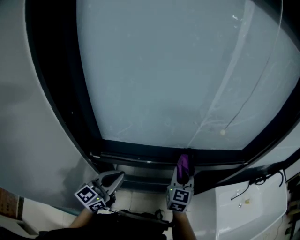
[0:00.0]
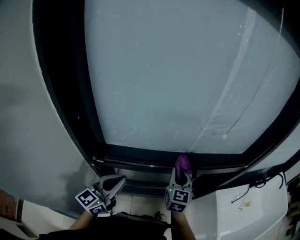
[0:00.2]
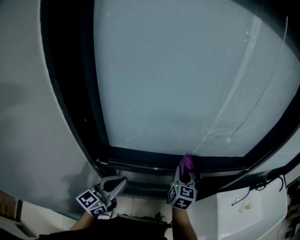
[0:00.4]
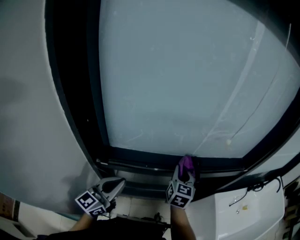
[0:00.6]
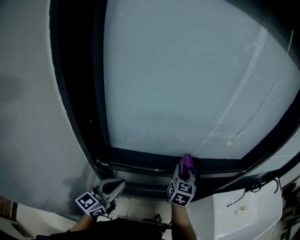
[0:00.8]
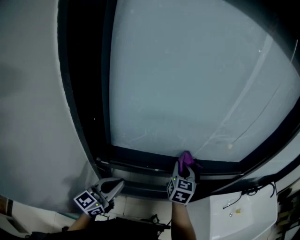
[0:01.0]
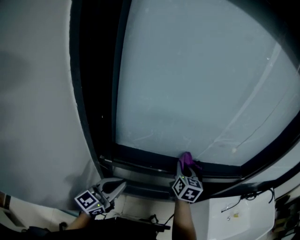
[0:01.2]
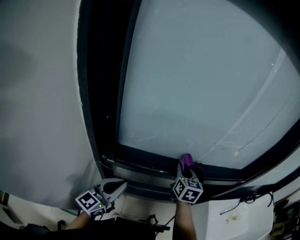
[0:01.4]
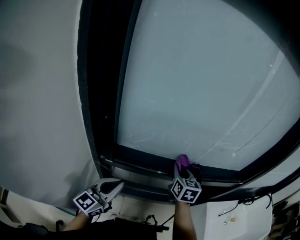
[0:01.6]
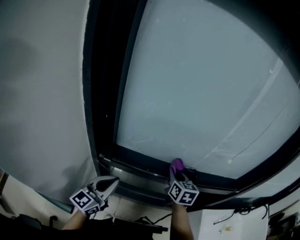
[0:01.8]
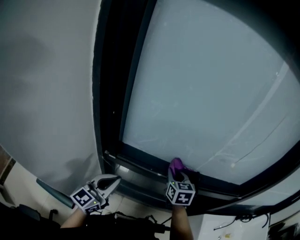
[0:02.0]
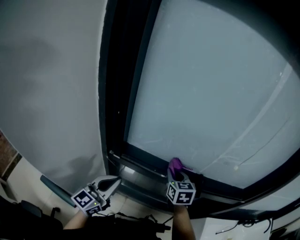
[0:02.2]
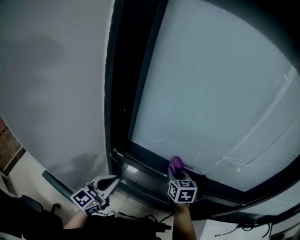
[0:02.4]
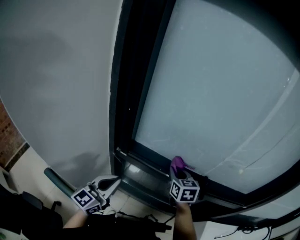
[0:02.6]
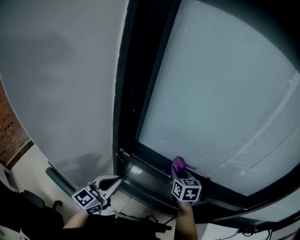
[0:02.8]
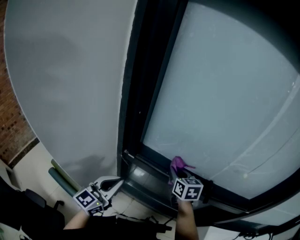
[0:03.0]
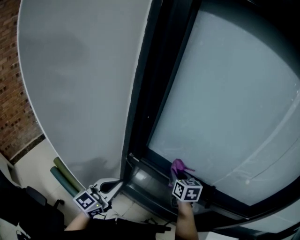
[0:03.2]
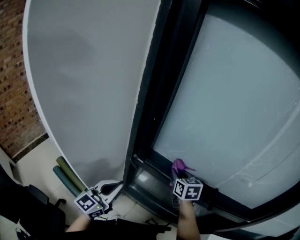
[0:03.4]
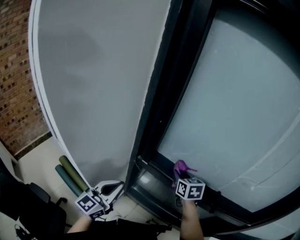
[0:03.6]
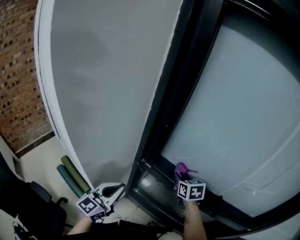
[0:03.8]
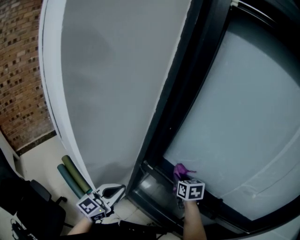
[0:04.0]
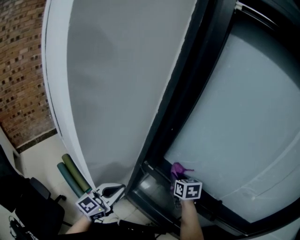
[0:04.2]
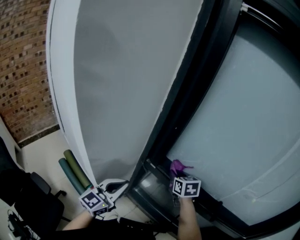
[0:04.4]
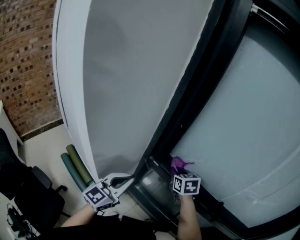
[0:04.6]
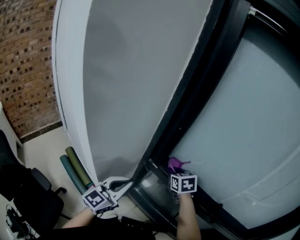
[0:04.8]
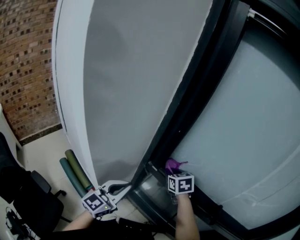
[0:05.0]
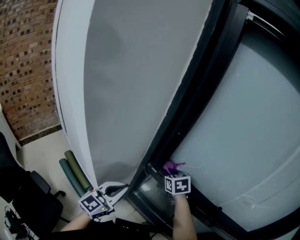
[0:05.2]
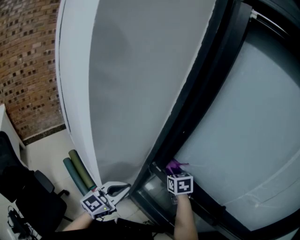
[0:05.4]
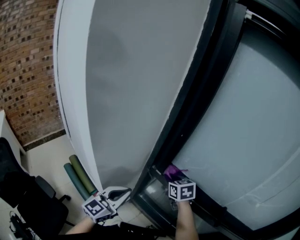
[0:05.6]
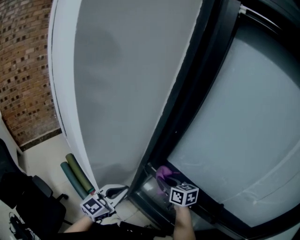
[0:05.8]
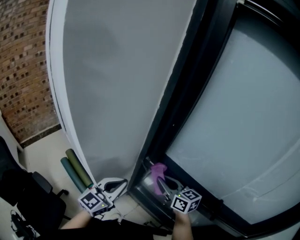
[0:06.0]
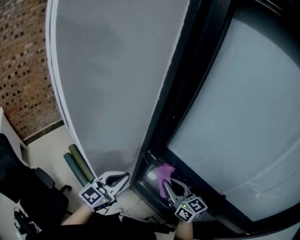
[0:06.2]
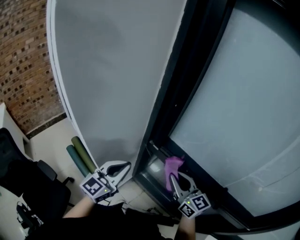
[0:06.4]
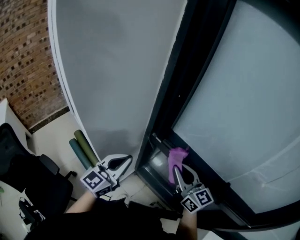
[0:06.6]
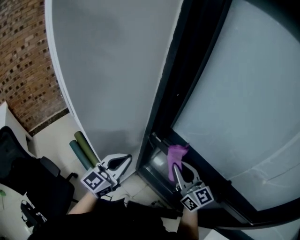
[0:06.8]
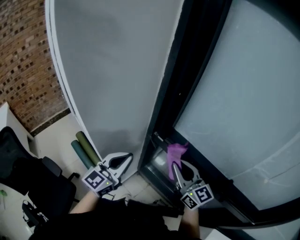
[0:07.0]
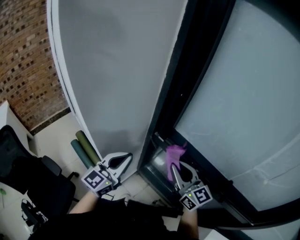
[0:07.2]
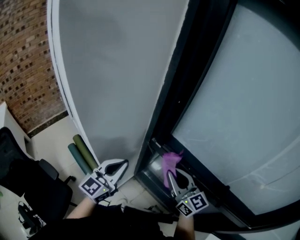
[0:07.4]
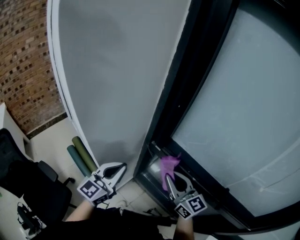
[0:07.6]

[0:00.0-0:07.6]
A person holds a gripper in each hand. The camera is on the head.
0:00.0 to 0:01.6: The right gripper travels to the left by about 5 cm. The left gripper ends up some 5 cm from where it was.
0:01.6 to 0:03.0: The left gripper heads backward, covering approximately 5 cm, and swivels about 20 degrees, while the right gripper shifts about 10 cm to the left, and changes its angle by approximately 30 degrees.
0:03.0 to 0:04.6: The right gripper shifts some 10 cm to the left, and rotates some 20 degrees.
0:04.6 to 0:06.0: The right gripper moves backward, about 10 cm, and turns by some 40 degrees.
0:06.0 to 0:07.6: The right gripper shifts some 5 cm backward.

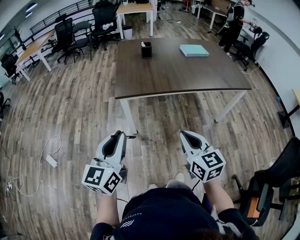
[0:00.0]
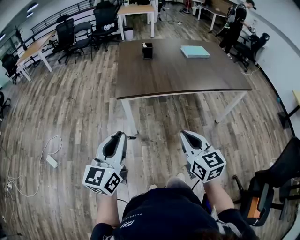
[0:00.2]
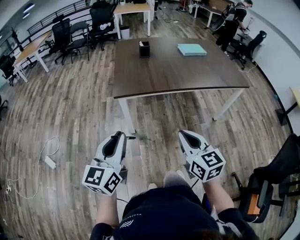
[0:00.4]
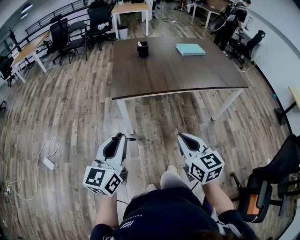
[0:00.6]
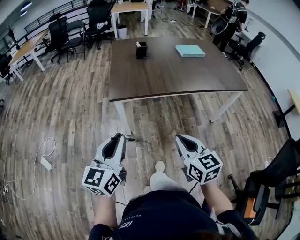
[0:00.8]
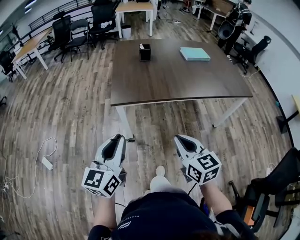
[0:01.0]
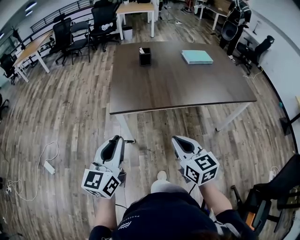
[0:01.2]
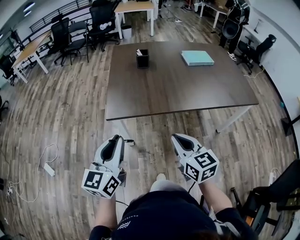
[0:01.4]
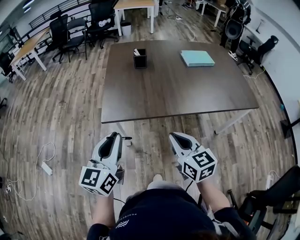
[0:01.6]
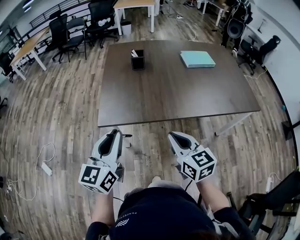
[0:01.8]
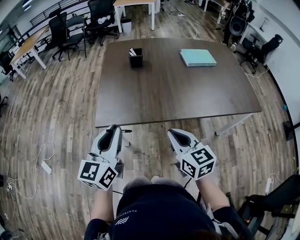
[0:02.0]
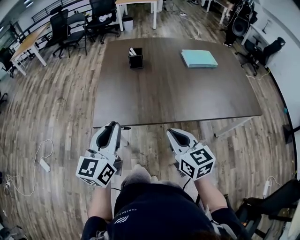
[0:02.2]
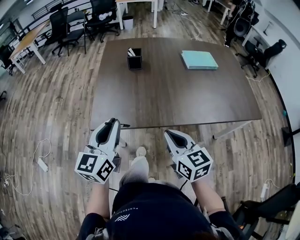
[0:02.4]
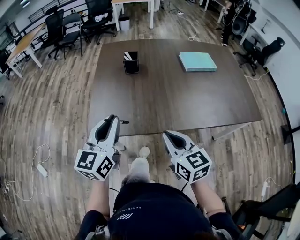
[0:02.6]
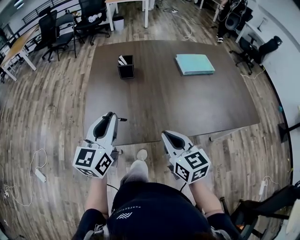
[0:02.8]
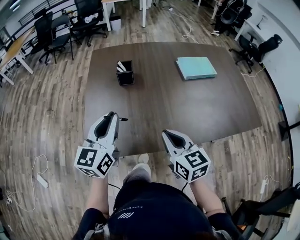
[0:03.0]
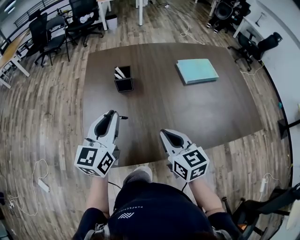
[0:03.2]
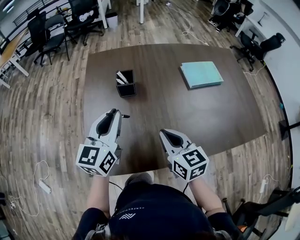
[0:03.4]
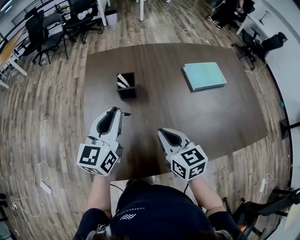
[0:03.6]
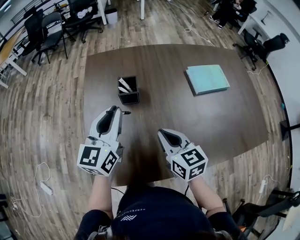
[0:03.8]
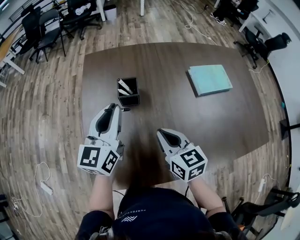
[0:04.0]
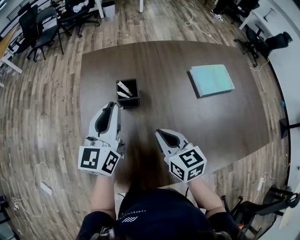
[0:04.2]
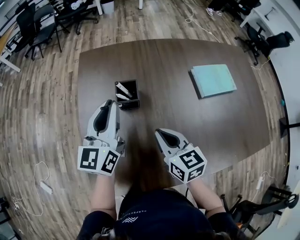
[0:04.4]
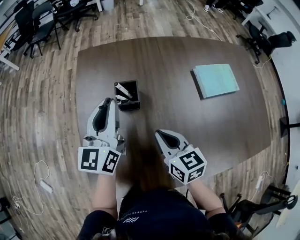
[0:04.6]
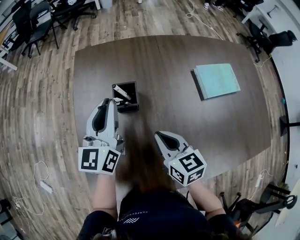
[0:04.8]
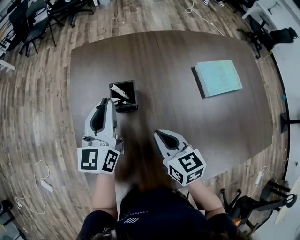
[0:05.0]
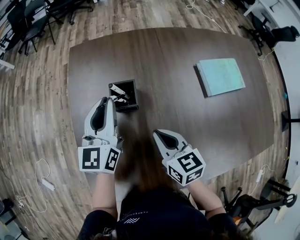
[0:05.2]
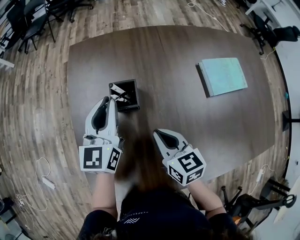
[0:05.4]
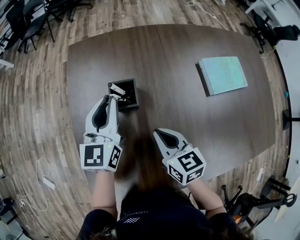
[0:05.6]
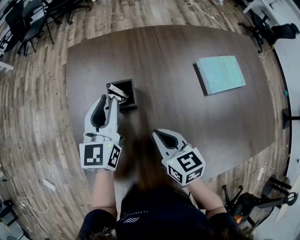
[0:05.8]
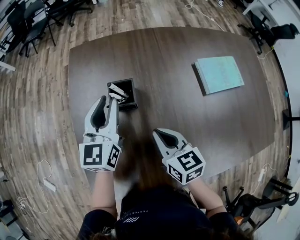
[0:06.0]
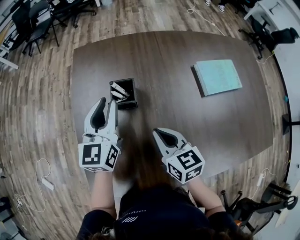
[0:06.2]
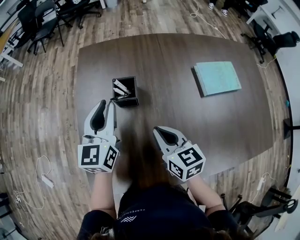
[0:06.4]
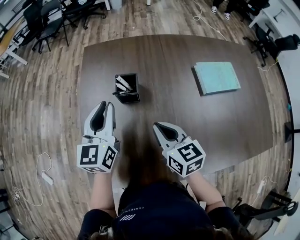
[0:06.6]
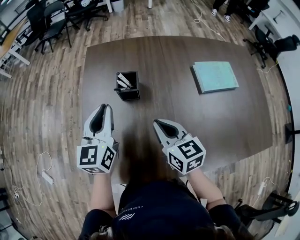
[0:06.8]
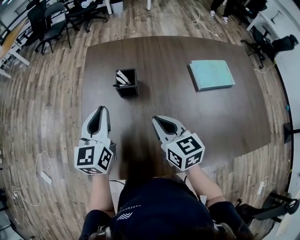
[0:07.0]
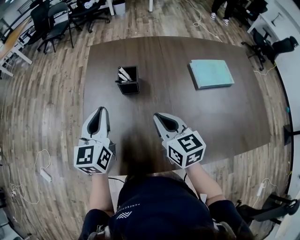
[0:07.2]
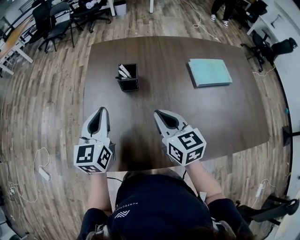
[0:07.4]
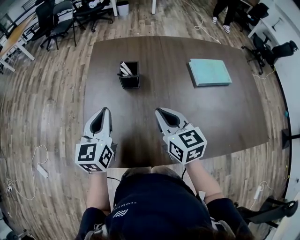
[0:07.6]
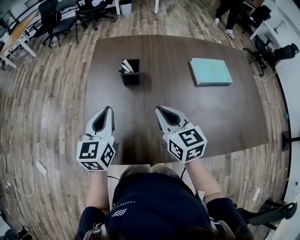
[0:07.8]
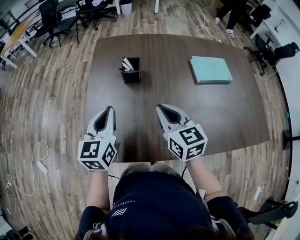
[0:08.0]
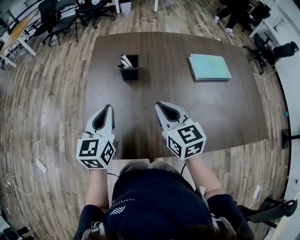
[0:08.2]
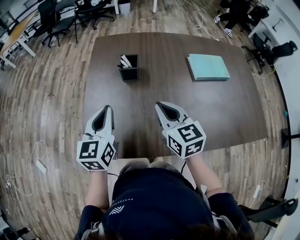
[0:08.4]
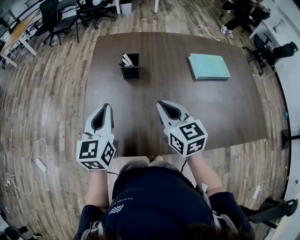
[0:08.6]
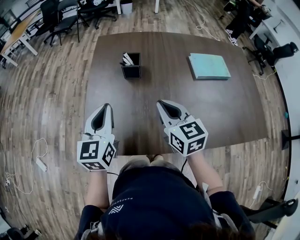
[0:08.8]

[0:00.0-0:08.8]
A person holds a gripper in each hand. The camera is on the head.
0:00.0 to 0:01.4: The grippers both shift forward by some 15 cm.
0:01.4 to 0:03.0: Both grippers travel together forward, approximately 30 cm.
0:03.0 to 0:04.4: Both grippers travel together forward, some 20 cm.
0:04.4 to 0:05.8: The left gripper moves downward and forward, about 10 cm; the right gripper moves approximately 5 cm.
0:05.8 to 0:07.4: The left gripper shifts some 20 cm backward and to the left, and closes, while the right gripper heads upward and backward, covering approximately 10 cm.
0:07.4 to 0:08.8: The left gripper travels backward by some 5 cm.

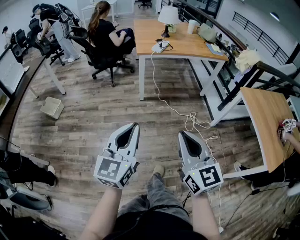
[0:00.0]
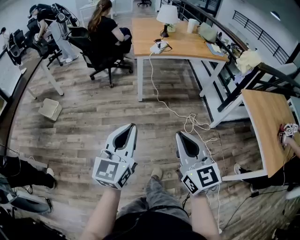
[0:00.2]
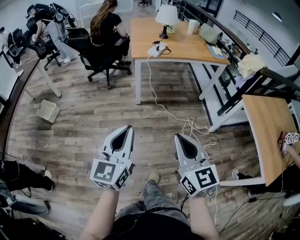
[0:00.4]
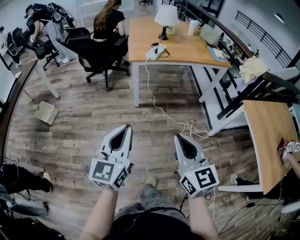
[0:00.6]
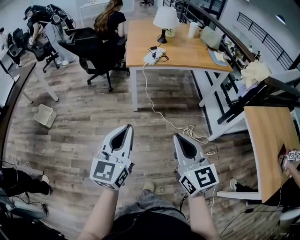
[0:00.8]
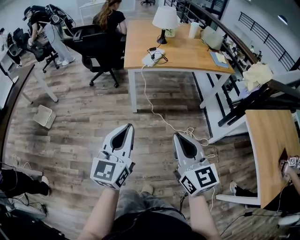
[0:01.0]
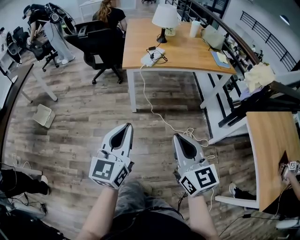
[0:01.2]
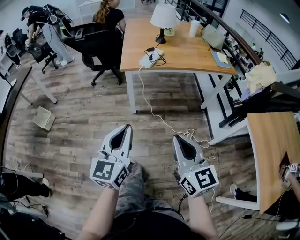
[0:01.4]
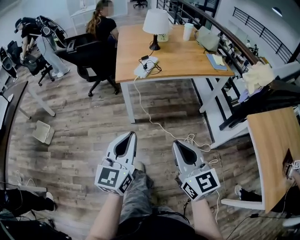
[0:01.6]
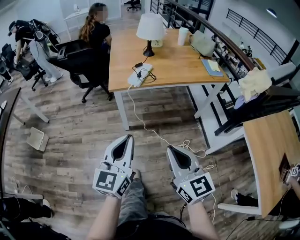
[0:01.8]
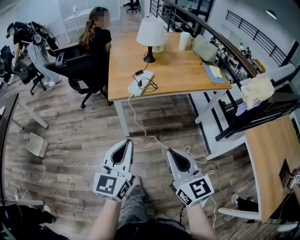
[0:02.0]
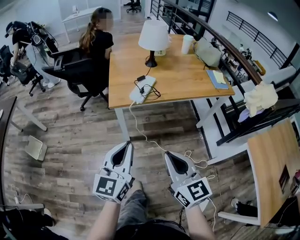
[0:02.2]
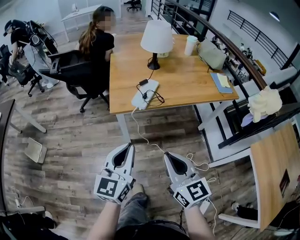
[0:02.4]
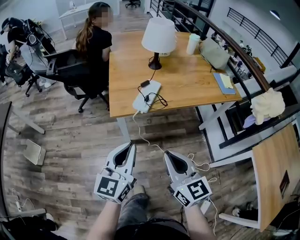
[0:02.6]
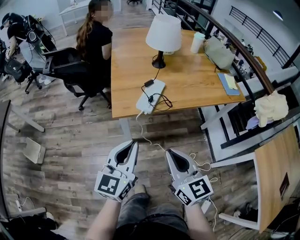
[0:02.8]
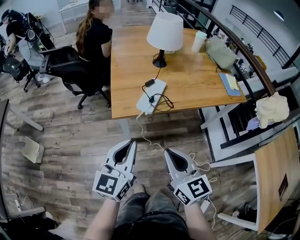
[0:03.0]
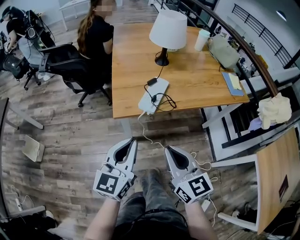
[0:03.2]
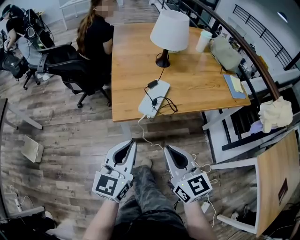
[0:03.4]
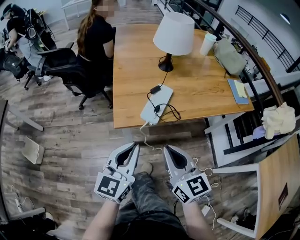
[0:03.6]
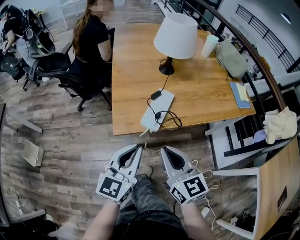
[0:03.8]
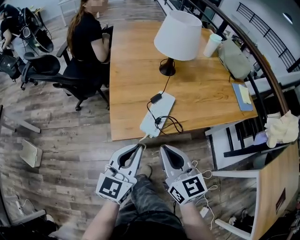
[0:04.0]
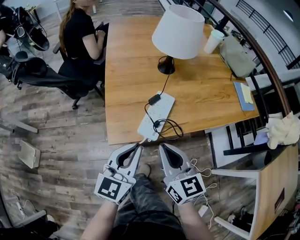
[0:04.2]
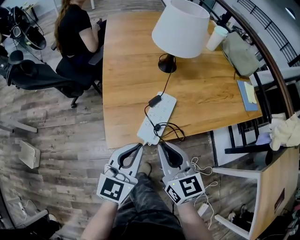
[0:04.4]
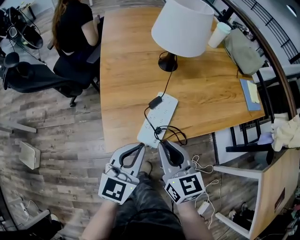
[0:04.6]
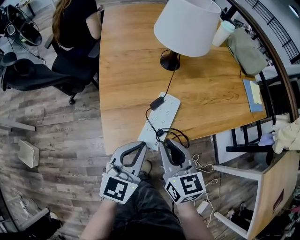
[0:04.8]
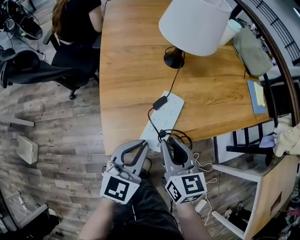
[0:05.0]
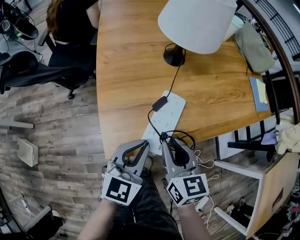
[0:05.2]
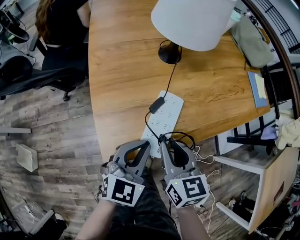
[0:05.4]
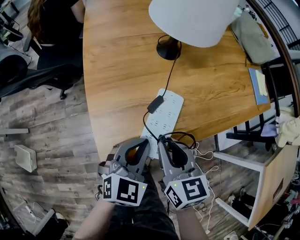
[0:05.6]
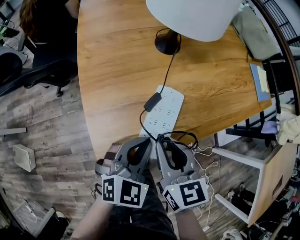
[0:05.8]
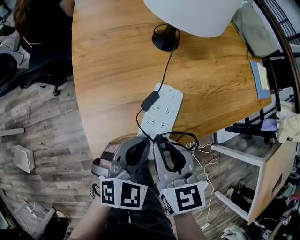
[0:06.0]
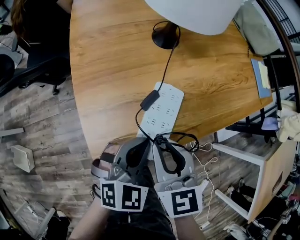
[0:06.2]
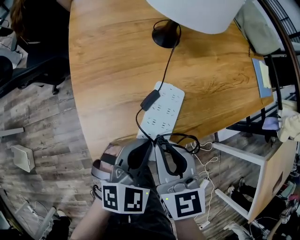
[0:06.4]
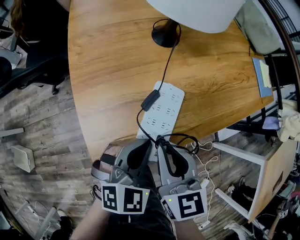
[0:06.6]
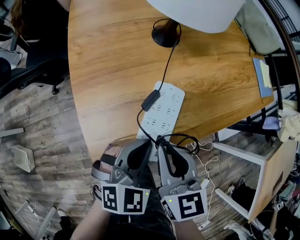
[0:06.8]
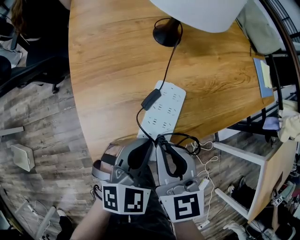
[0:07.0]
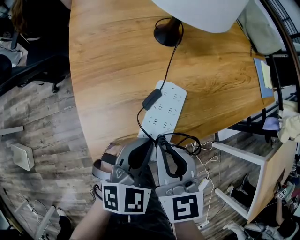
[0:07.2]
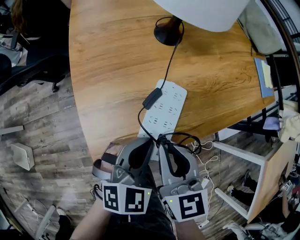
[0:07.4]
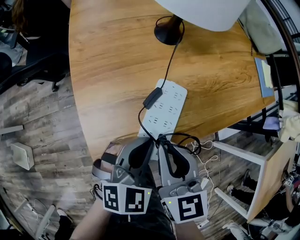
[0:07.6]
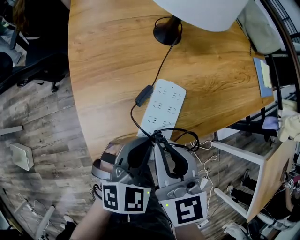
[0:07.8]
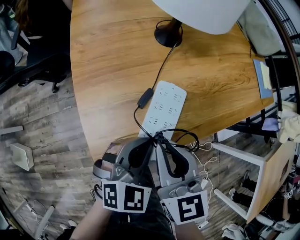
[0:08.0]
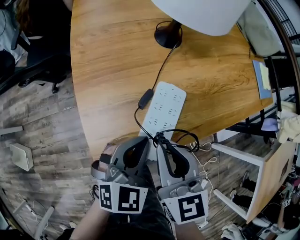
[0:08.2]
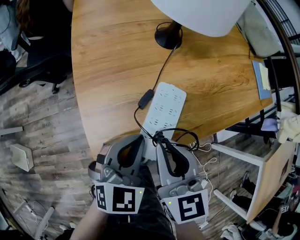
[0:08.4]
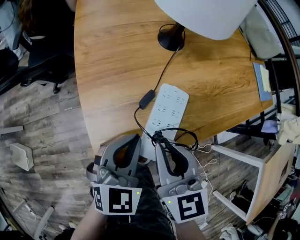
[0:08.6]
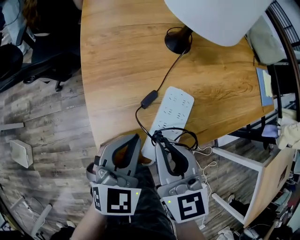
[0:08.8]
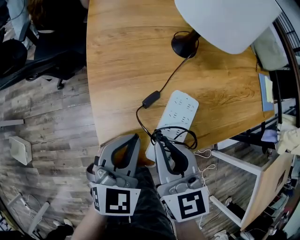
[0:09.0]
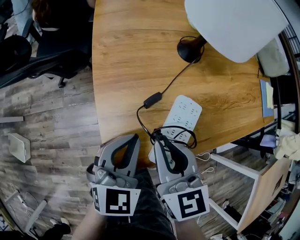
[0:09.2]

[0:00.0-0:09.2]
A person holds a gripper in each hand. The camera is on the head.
0:00.0 to 0:01.6: The grippers both shift forward by roughly 30 cm.
0:01.6 to 0:03.0: The grippers both shift forward by roughly 30 cm.
0:03.0 to 0:04.6: The right gripper shifts approximately 25 cm forward, while the left gripper heads forward and downward, covering roughly 20 cm.
0:04.6 to 0:06.2: The right gripper goes approximately 5 cm forward; the left gripper moves downward and forward, roughly 10 cm, and changes its angle by about 40 degrees.
0:06.2 to 0:07.6: There are only small adjustments of the grippers.
0:07.6 to 0:09.2: Both grippers move to the left, about 10 cm. The left gripper changes its angle by roughly 20 degrees.
